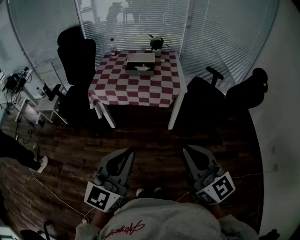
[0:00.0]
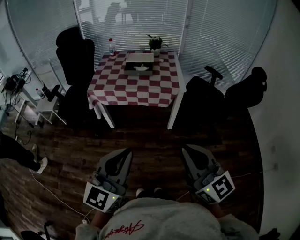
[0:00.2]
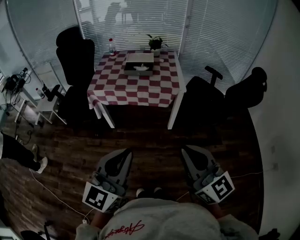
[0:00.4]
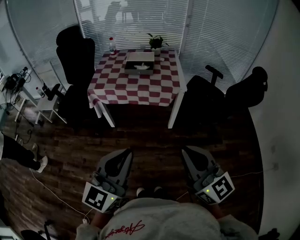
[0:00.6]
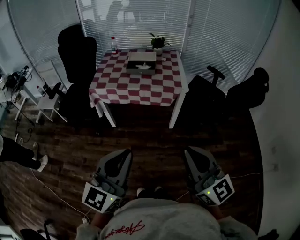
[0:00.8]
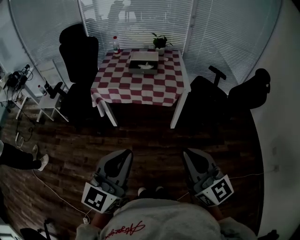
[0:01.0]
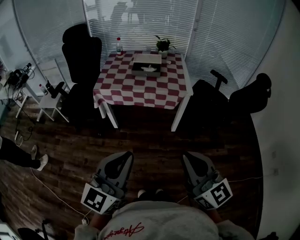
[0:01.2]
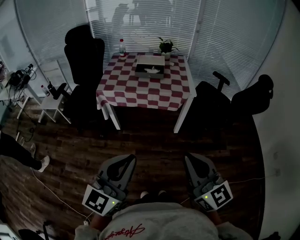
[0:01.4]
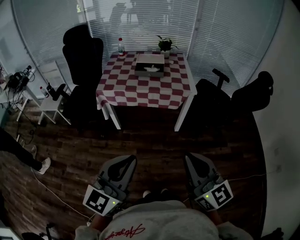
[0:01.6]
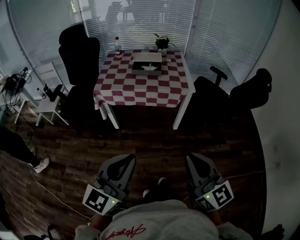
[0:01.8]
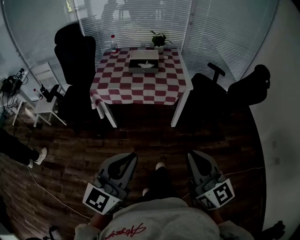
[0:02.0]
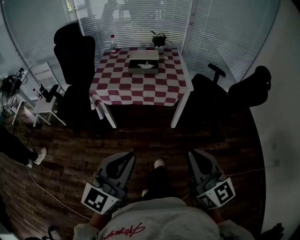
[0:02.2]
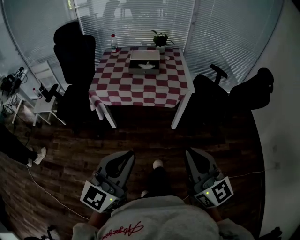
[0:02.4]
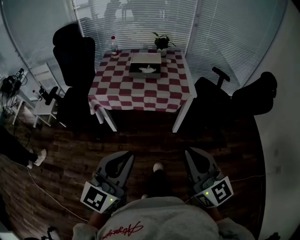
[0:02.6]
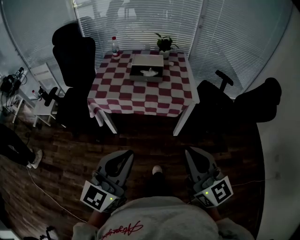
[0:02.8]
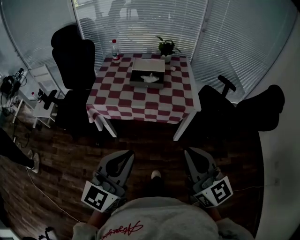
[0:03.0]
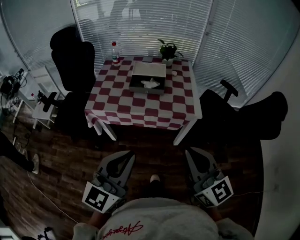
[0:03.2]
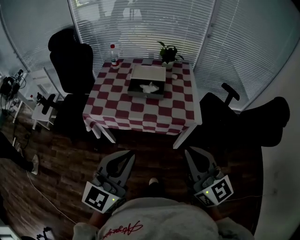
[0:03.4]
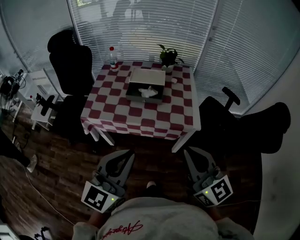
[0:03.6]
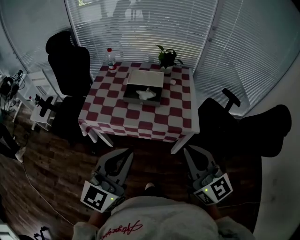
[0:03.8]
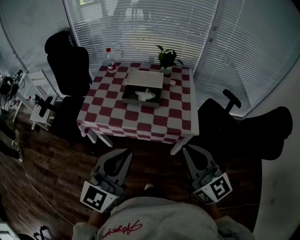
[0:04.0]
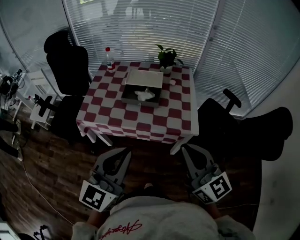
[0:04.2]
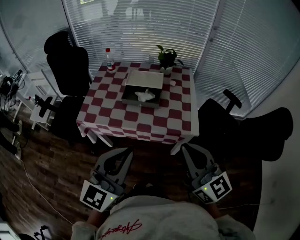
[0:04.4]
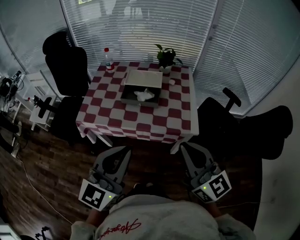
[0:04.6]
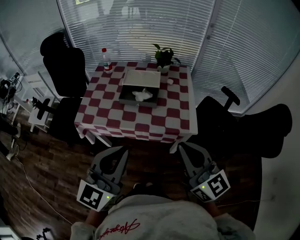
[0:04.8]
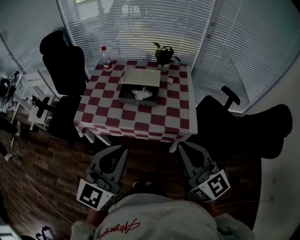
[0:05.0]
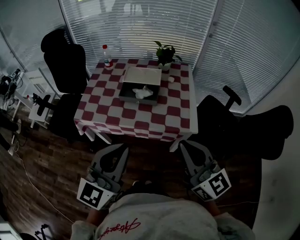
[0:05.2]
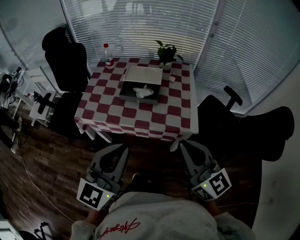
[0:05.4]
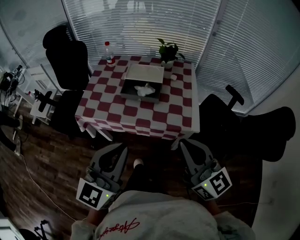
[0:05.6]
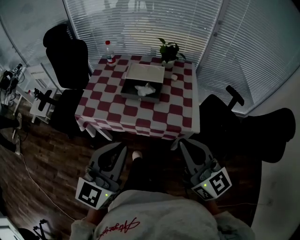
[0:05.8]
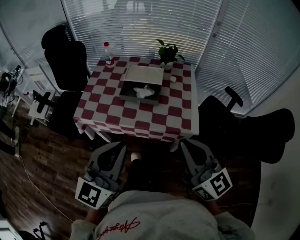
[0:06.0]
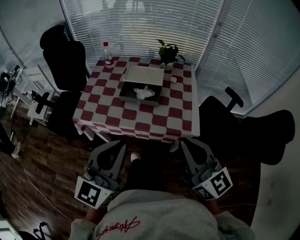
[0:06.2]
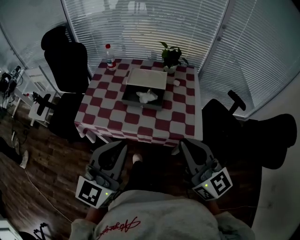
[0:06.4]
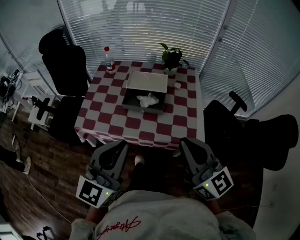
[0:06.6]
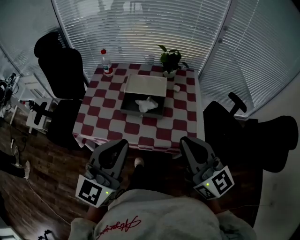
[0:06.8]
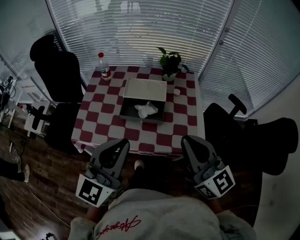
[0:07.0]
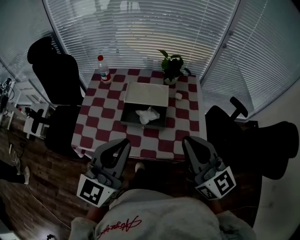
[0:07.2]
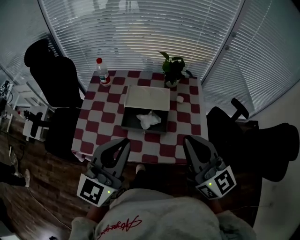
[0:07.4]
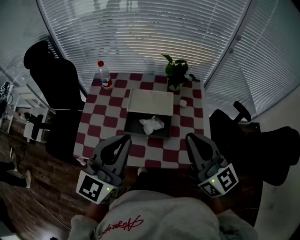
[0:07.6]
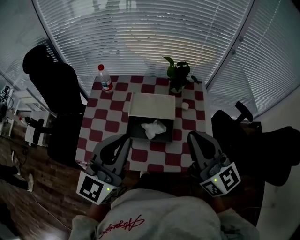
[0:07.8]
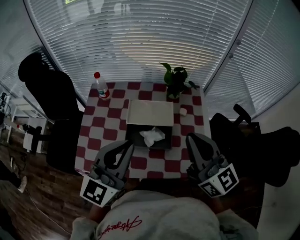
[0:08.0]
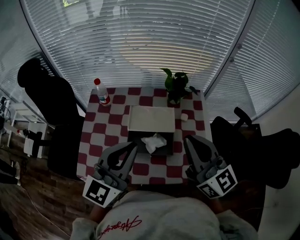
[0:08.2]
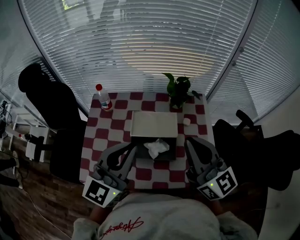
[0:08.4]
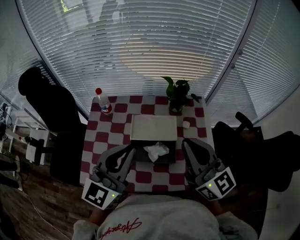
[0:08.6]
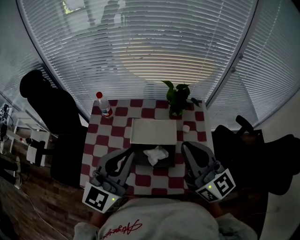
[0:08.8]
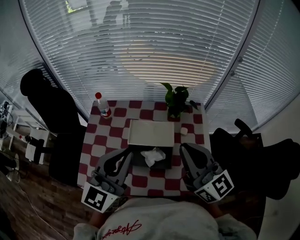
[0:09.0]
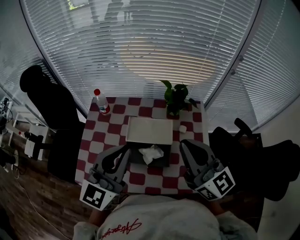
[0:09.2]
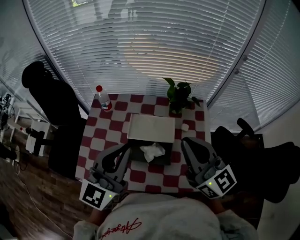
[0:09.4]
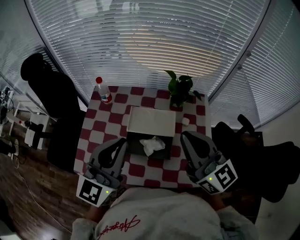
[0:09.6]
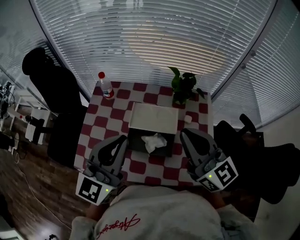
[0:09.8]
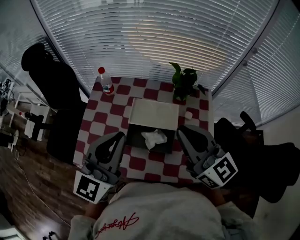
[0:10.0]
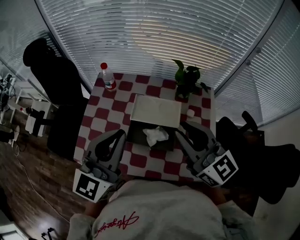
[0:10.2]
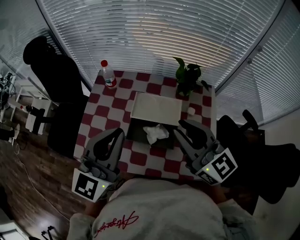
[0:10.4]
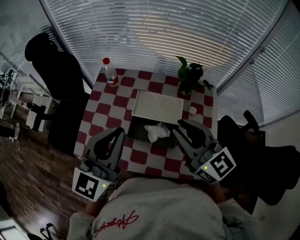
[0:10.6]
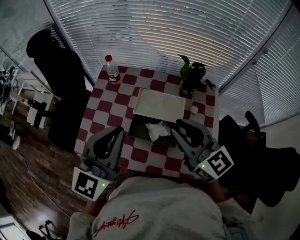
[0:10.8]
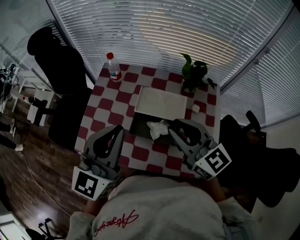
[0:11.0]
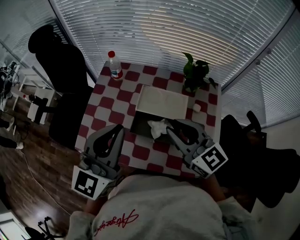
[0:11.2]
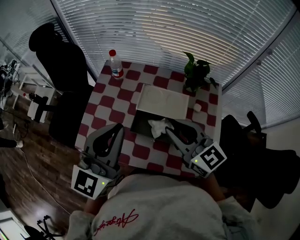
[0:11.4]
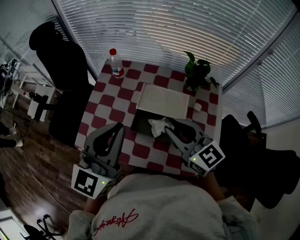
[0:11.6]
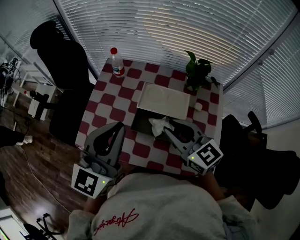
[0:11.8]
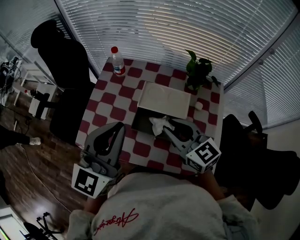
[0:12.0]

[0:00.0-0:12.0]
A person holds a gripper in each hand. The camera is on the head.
0:00.0 to 0:01.6: The grippers both shift to the left by some 5 cm.
0:01.6 to 0:03.0: The two grippers go roughly 20 cm forward.
0:03.0 to 0:04.4: Both grippers move forward, about 20 cm.
0:04.4 to 0:06.0: The grippers make only small movements.
0:06.0 to 0:07.6: Both grippers move forward, roughly 25 cm.
0:07.6 to 0:09.0: The grippers both shift forward by some 10 cm.
0:09.0 to 0:10.4: The right gripper opens its fingers.
0:10.4 to 0:12.0: The right gripper moves downward, roughly 10 cm.

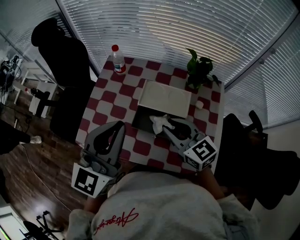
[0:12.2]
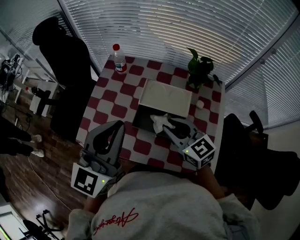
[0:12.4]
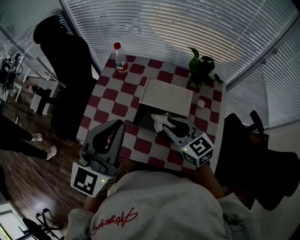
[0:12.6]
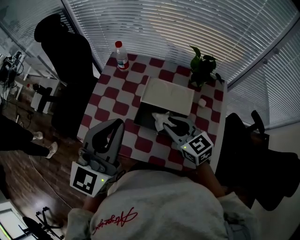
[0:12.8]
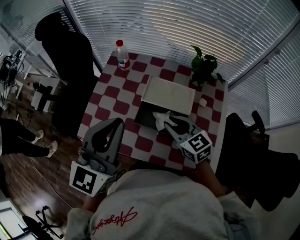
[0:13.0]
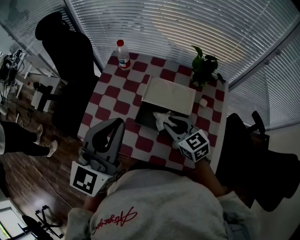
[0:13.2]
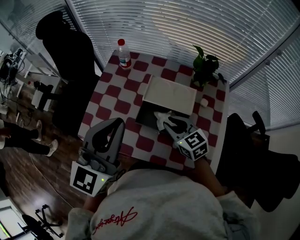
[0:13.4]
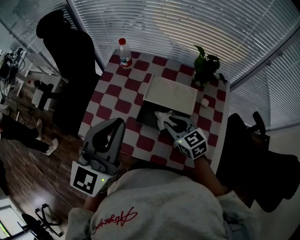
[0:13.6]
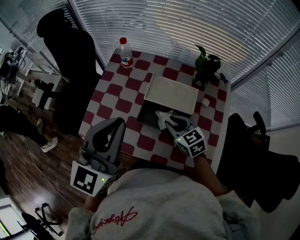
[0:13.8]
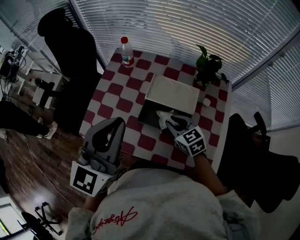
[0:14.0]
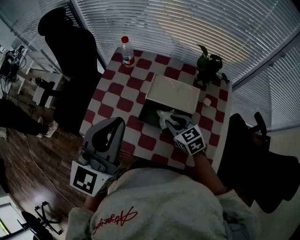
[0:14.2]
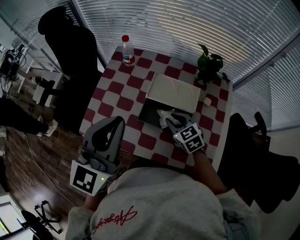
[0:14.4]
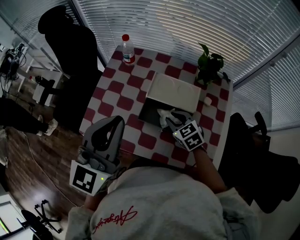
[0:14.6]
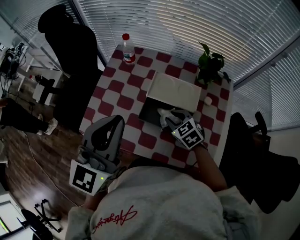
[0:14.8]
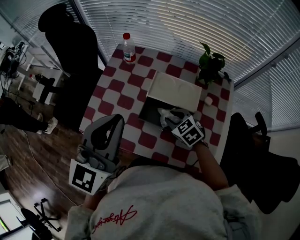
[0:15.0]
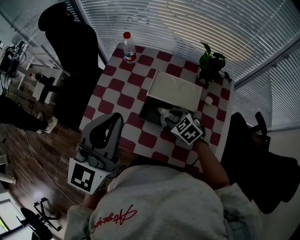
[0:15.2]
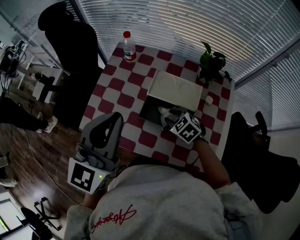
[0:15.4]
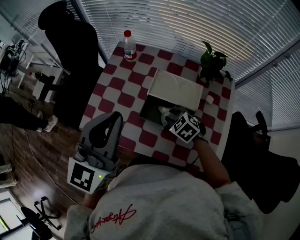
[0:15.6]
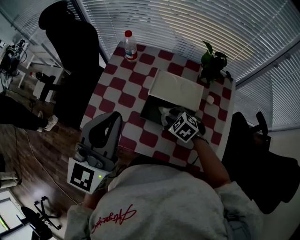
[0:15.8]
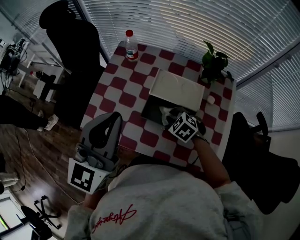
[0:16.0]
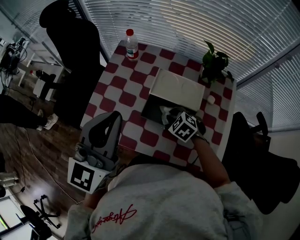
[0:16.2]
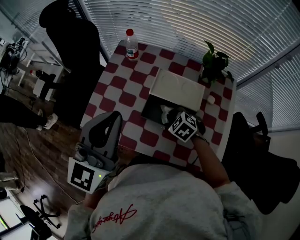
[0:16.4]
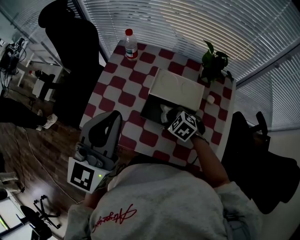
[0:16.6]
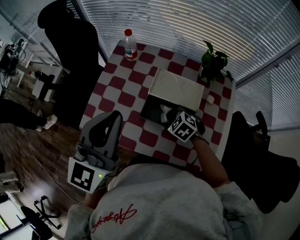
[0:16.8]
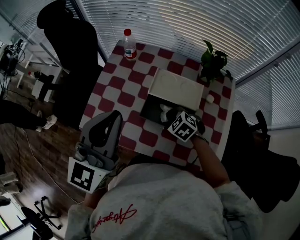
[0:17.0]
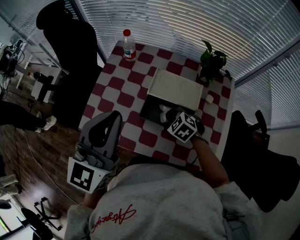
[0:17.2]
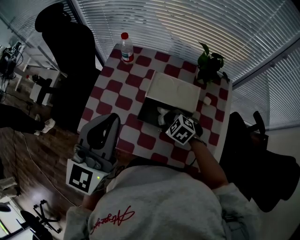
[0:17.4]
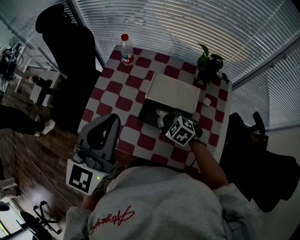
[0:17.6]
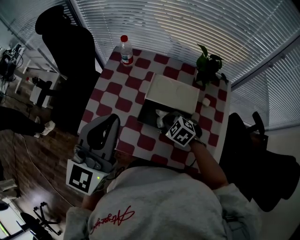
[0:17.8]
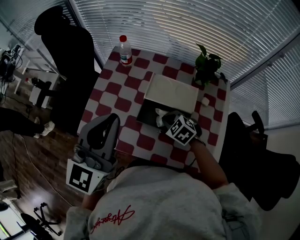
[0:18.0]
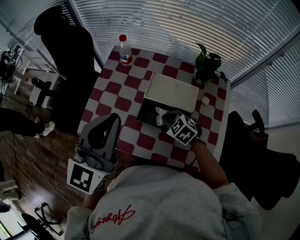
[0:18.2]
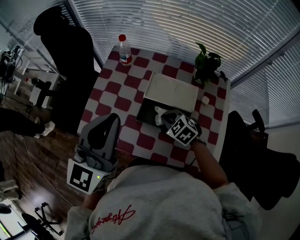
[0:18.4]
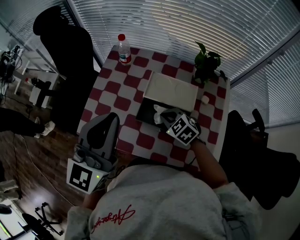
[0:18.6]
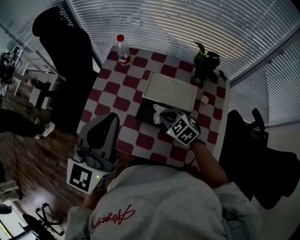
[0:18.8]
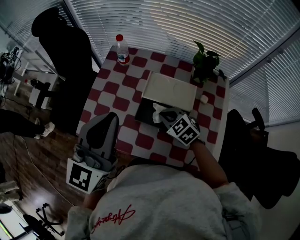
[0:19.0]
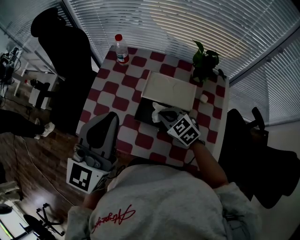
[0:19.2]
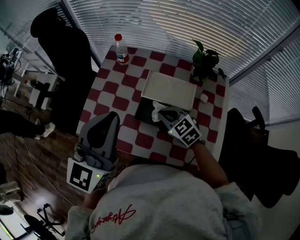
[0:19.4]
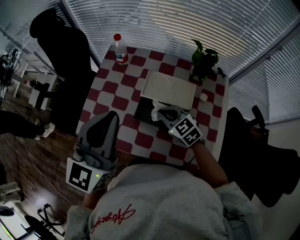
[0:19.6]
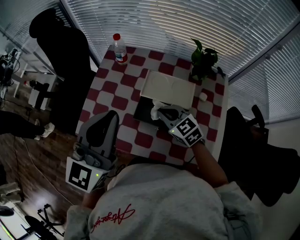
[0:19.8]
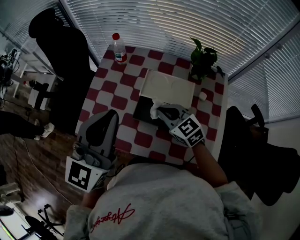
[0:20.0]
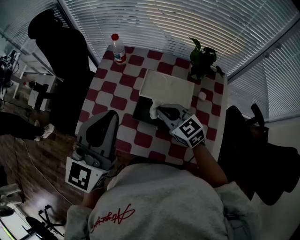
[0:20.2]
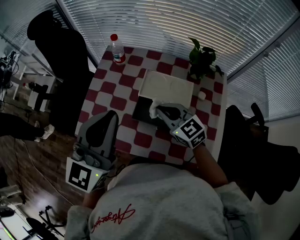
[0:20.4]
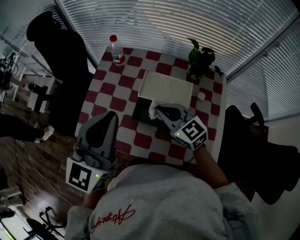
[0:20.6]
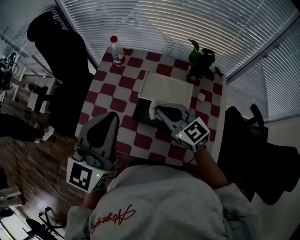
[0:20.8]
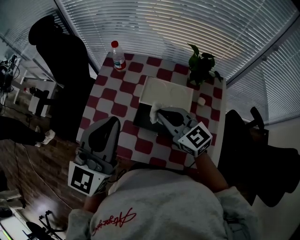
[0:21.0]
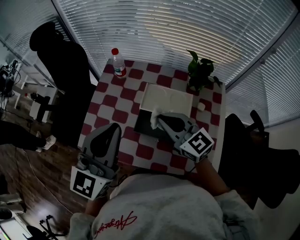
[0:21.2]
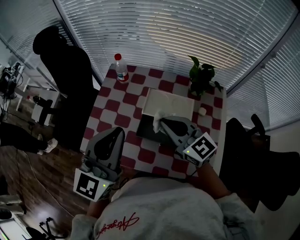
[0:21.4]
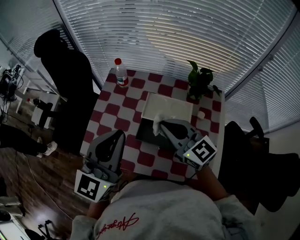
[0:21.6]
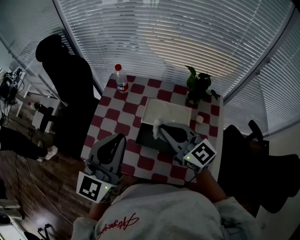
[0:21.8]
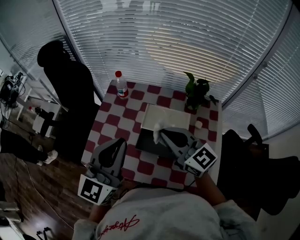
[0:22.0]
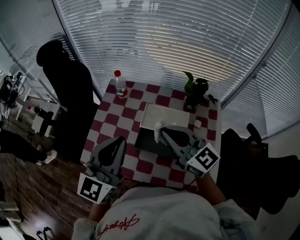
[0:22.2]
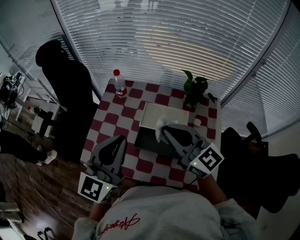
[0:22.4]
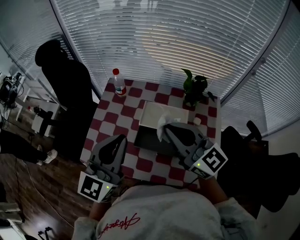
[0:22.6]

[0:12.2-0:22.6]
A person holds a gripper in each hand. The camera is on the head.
0:12.2 to 0:13.6: The right gripper heads downward, covering about 10 cm.
0:13.6 to 0:15.2: The right gripper goes some 5 cm downward, and swivels about 30 degrees.
0:15.2 to 0:16.6: The right gripper closes its fingers.
0:16.6 to 0:18.2: There are only small adjustments of the grippers.
0:18.2 to 0:19.6: The grippers make only small movements.
0:19.6 to 0:21.2: The right gripper heads upward, covering some 10 cm, and rotates roughly 30 degrees.
0:21.2 to 0:22.6: The right gripper shifts some 10 cm upward.

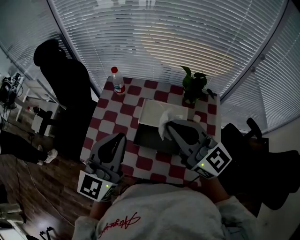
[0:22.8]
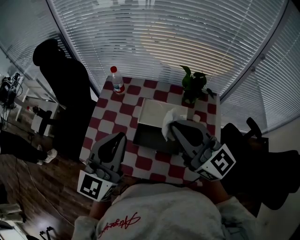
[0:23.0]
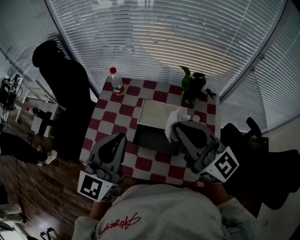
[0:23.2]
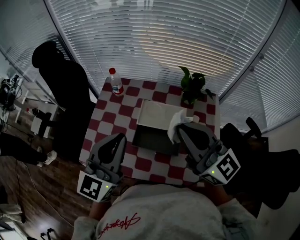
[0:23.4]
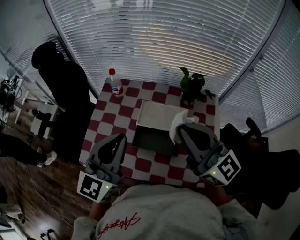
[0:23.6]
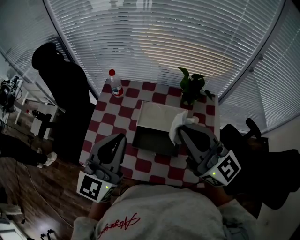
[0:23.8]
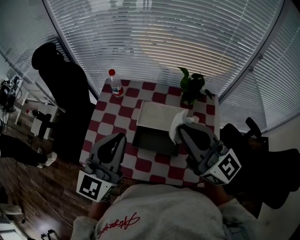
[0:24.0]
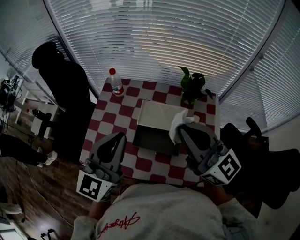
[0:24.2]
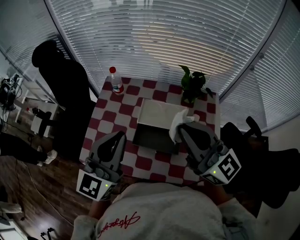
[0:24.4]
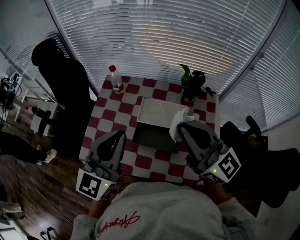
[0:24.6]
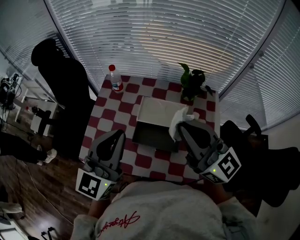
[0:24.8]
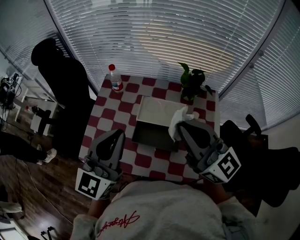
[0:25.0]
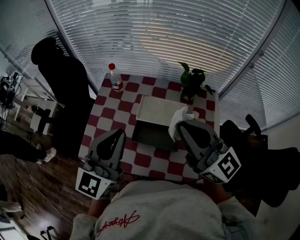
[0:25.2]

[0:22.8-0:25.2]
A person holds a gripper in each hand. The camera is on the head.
0:22.8 to 0:24.0: The grippers make only small movements.
0:24.0 to 0:25.2: The two grippers keep their place.
